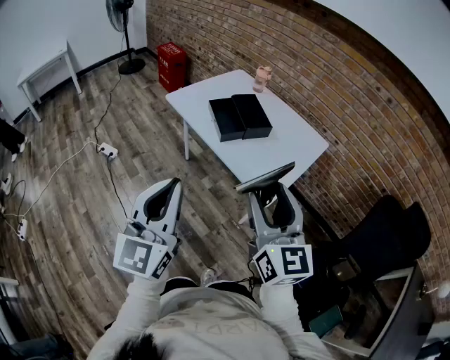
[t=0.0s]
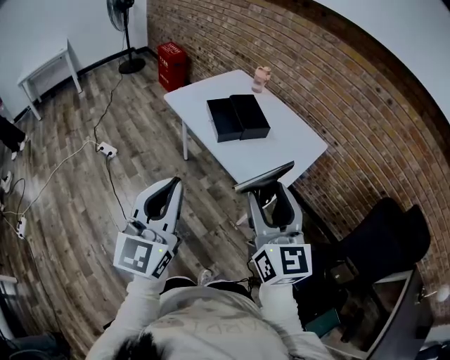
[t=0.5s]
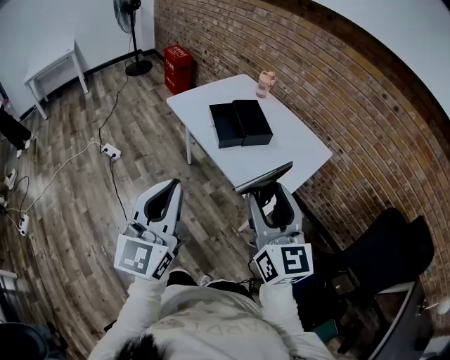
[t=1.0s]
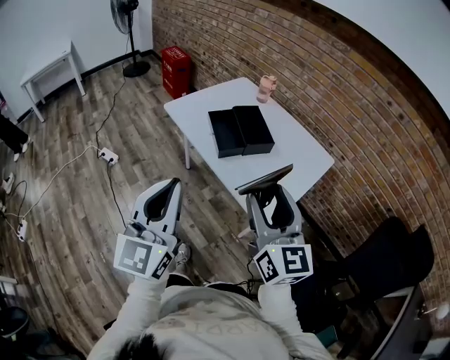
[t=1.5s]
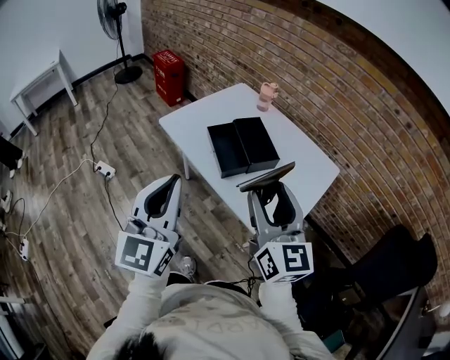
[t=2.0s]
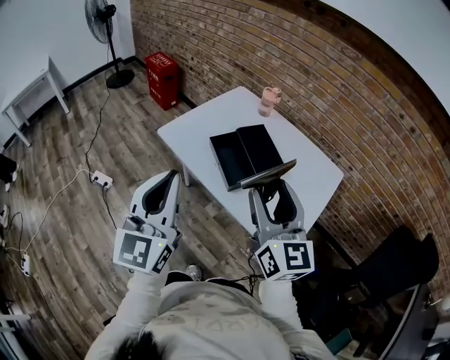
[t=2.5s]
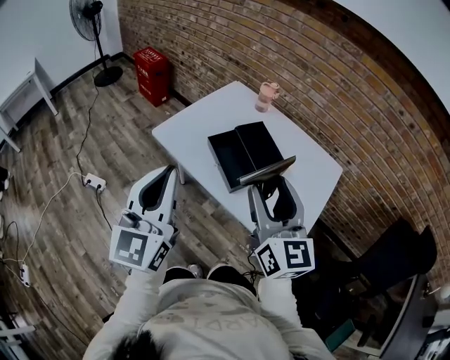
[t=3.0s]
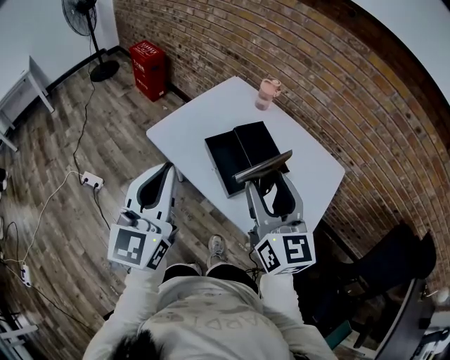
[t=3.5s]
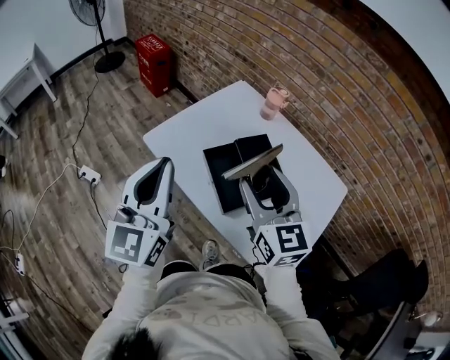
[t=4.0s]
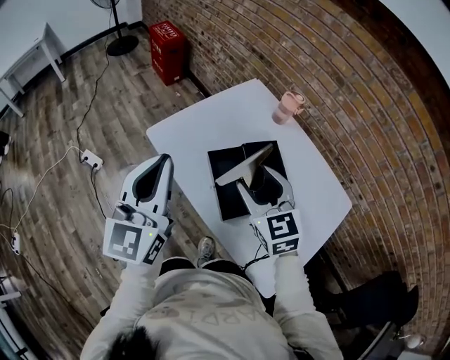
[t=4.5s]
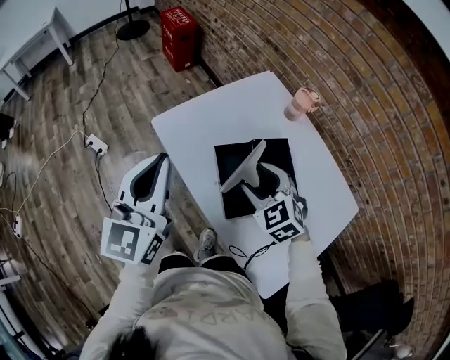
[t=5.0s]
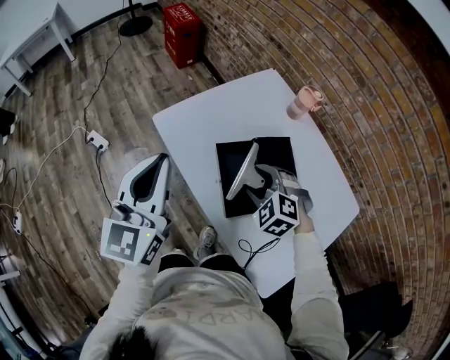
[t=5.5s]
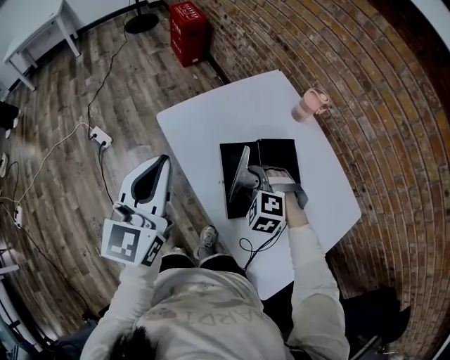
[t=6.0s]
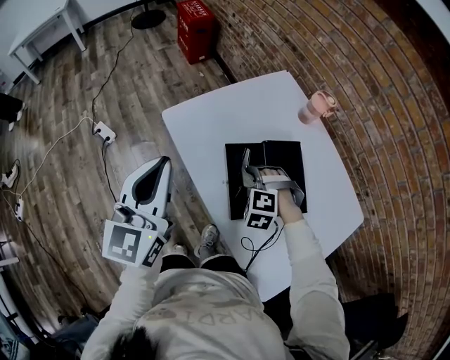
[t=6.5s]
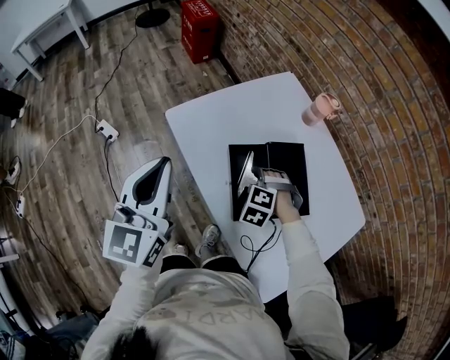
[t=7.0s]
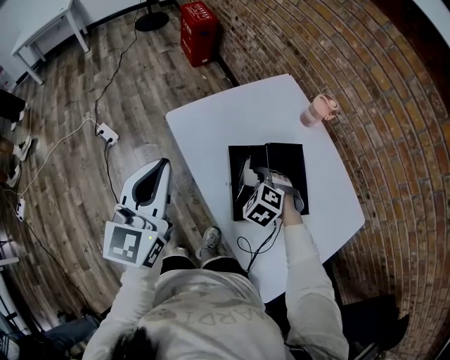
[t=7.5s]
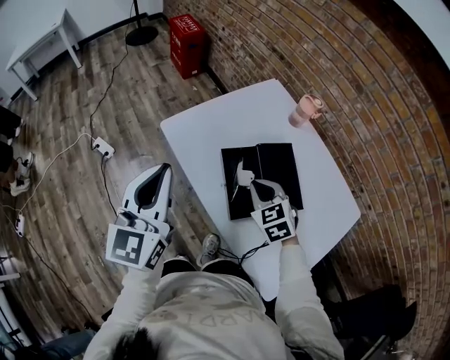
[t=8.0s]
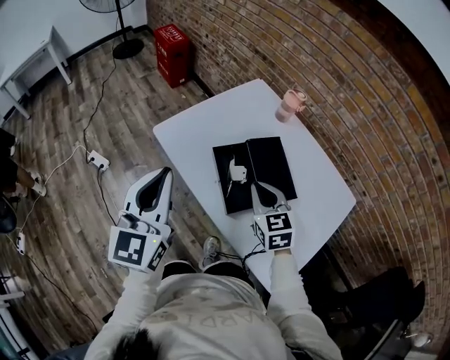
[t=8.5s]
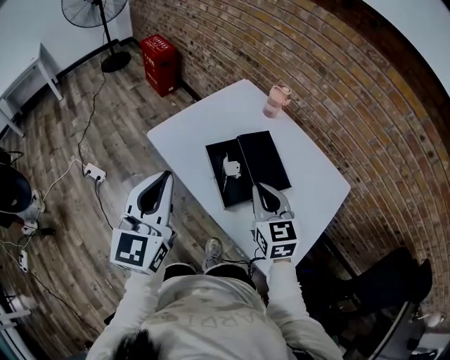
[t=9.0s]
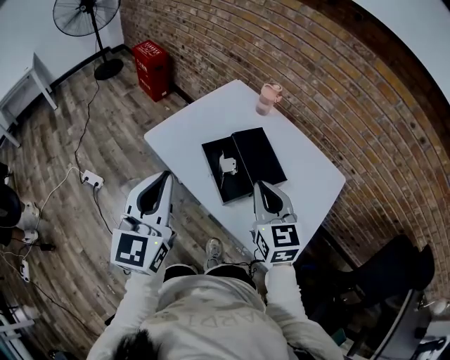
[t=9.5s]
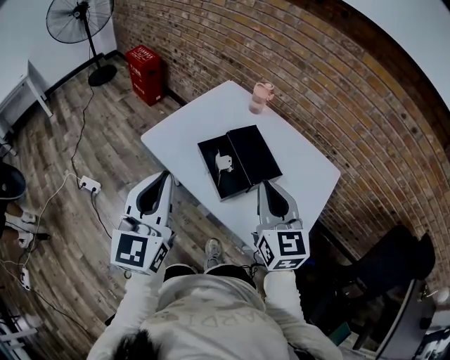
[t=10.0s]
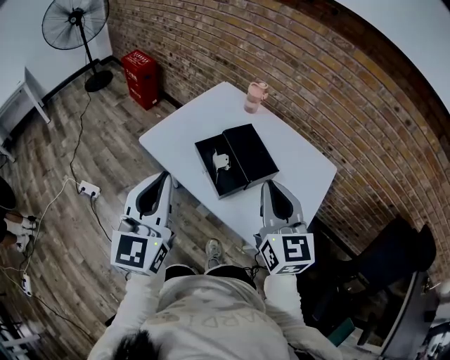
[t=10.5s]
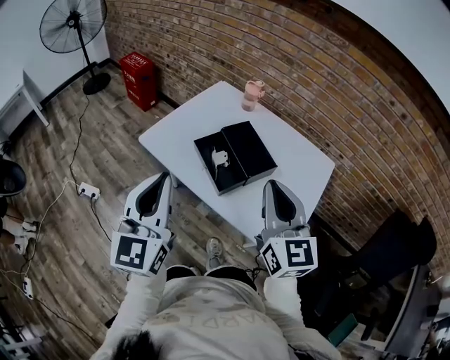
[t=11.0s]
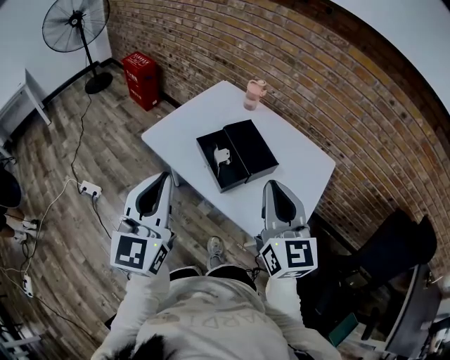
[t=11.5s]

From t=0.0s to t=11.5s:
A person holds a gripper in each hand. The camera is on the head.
From t=0.0s to t=2.0s: Both grippers move forward, roughly 20 cm.
From t=2.0s to t=4.0s: The two grippers go approximately 25 cm forward.
From t=4.0s to t=6.0s: The left gripper heads downward and forward, covering about 10 cm. Meanwhile the right gripper shifts roughly 25 cm downward, and tips its fingers downward by some 50 degrees.
From t=6.0s to t=7.5s: The grippers make only small movements.
From t=7.5s to t=9.5s: The right gripper travels upward and backward by about 25 cm, points its fingers about 50 degrees further upward, and closes. The left gripper goes roughly 10 cm backward.
From t=9.5s to t=11.5s: The right gripper is displaced backward and upward by roughly 15 cm. The left gripper travels backward by some 10 cm.

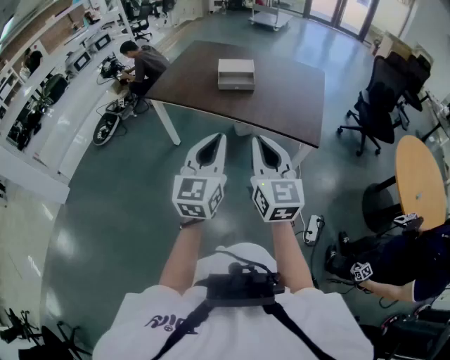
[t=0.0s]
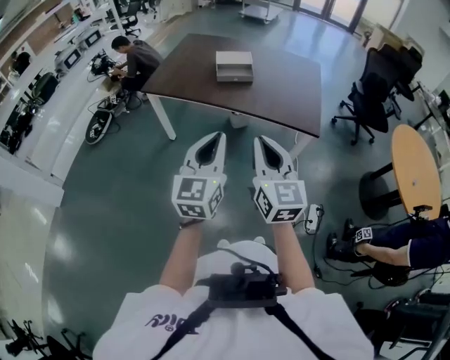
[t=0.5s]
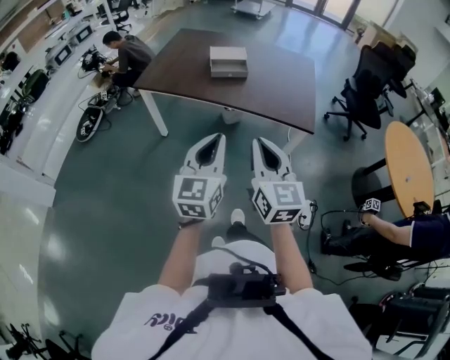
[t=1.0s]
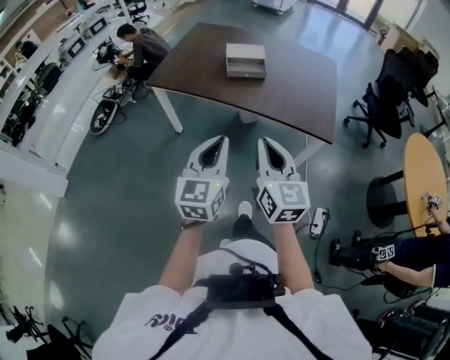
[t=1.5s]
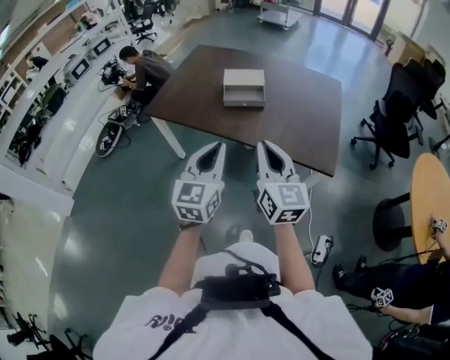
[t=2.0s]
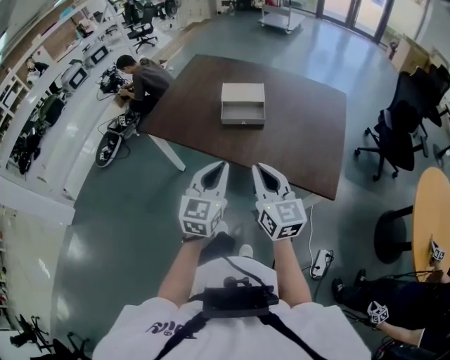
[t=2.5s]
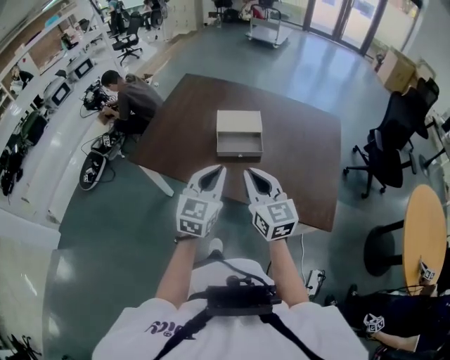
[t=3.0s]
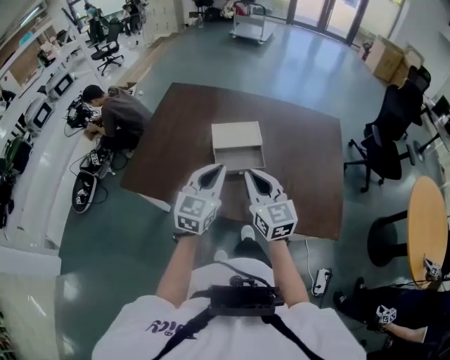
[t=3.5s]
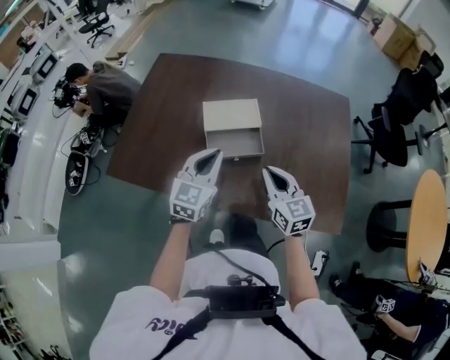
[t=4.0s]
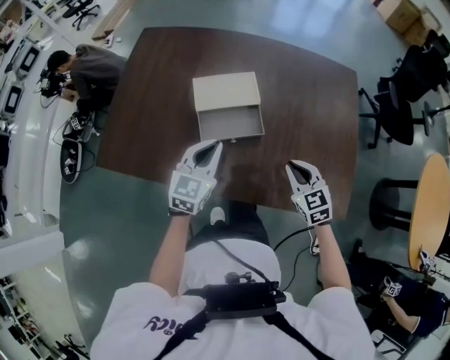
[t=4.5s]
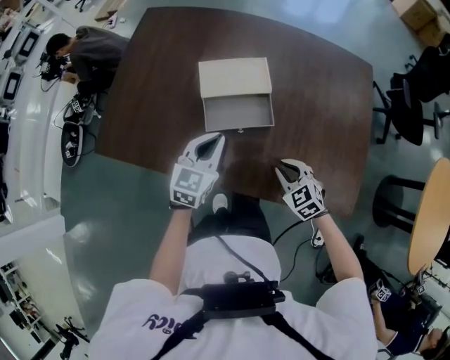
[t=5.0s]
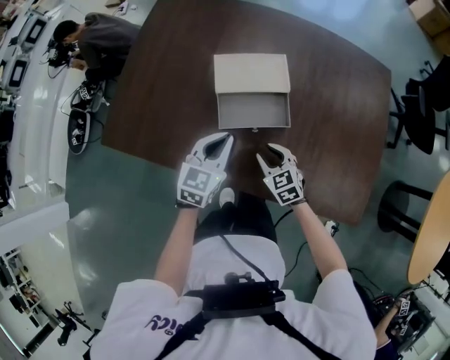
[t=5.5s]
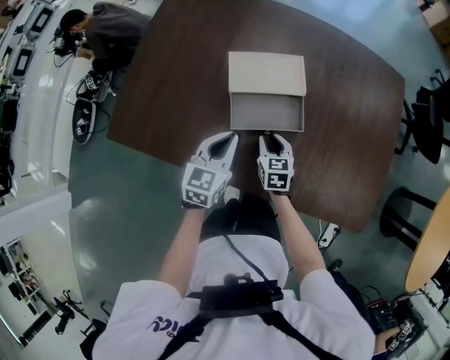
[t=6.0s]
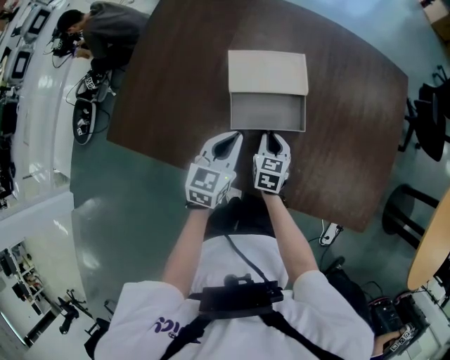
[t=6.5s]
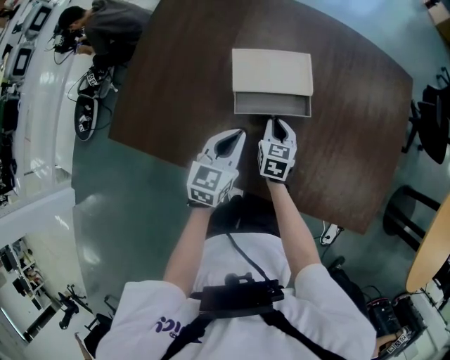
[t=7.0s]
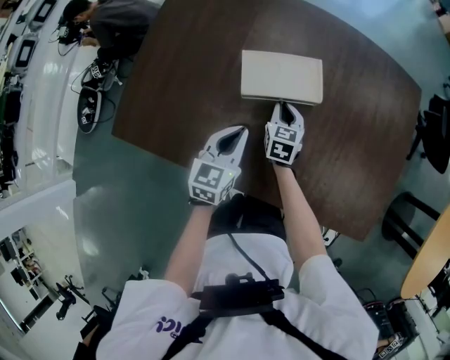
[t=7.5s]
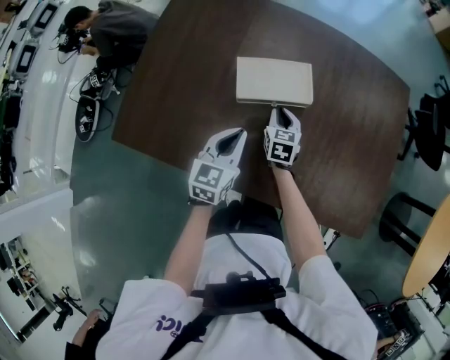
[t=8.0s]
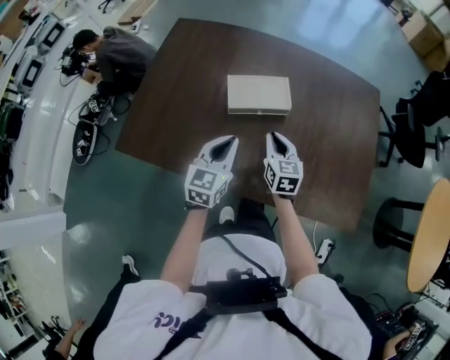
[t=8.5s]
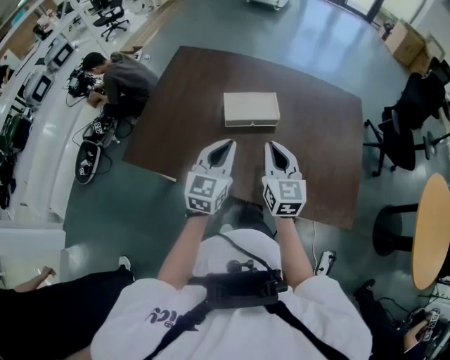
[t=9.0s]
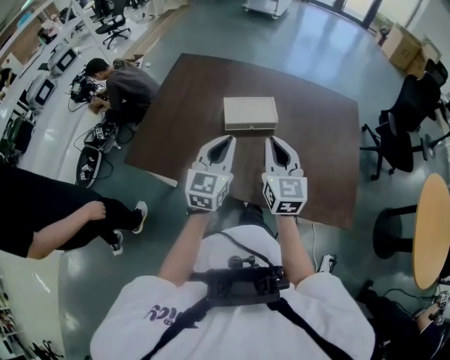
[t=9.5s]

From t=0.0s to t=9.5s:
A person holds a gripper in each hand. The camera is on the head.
From t=0.0s to t=2.0s: Both grippers travel together forward, approximately 20 cm.
From t=2.0s to t=4.0s: The pair of grippers is taken forward, approximately 40 cm. The right gripper is displaced downward by approximately 20 cm.
From t=4.0s to t=5.5s: The left gripper heads downward, covering about 15 cm. Meanwhile the right gripper goes some 25 cm downward, swivels some 30 degrees, and opens.
From t=5.5s to t=7.5s: The left gripper changes place by approximately 5 cm, while the right gripper moves forward, about 20 cm, and turns by roughly 30 degrees.
From t=7.5s to t=9.5s: The left gripper shifts about 25 cm upward and backward, and swivels approximately 20 degrees; the right gripper travels upward and backward by some 40 cm, and angles its fingers upward, by some 30 degrees.

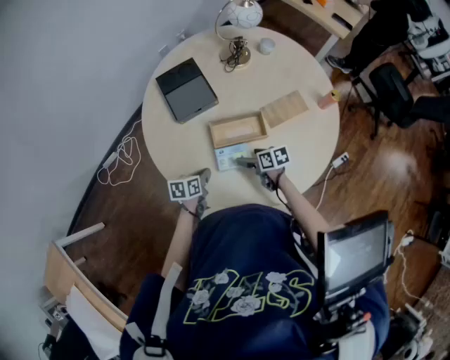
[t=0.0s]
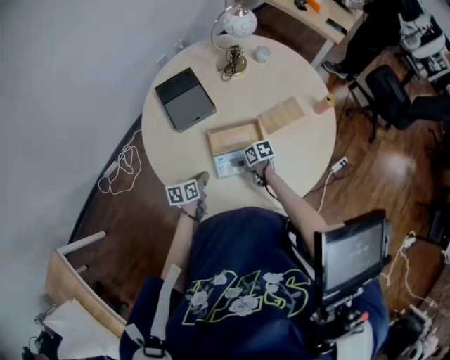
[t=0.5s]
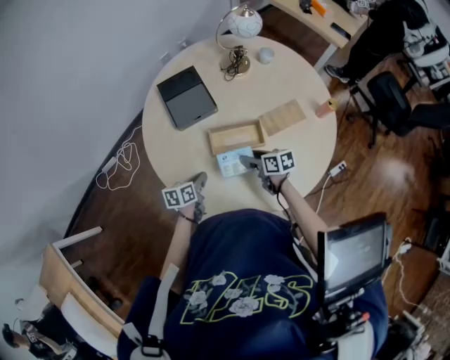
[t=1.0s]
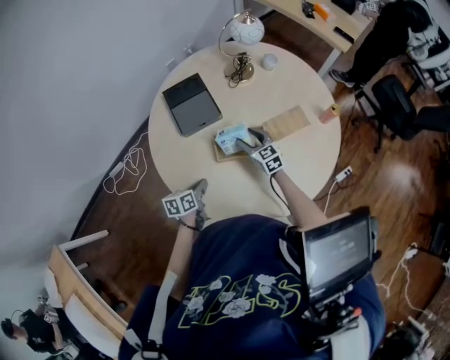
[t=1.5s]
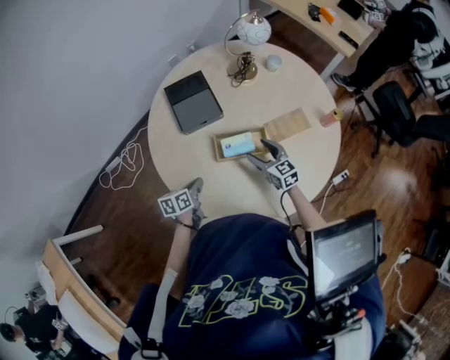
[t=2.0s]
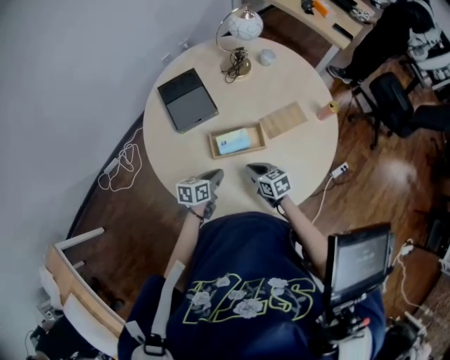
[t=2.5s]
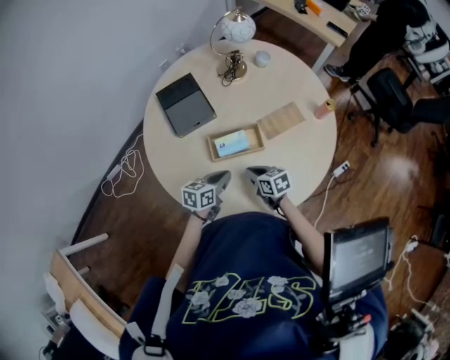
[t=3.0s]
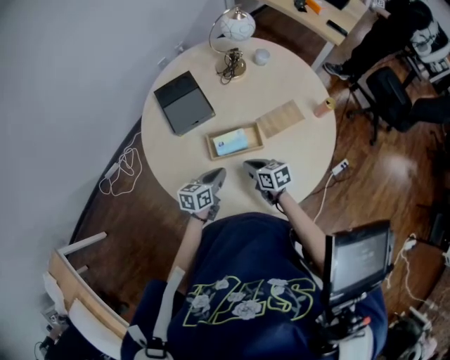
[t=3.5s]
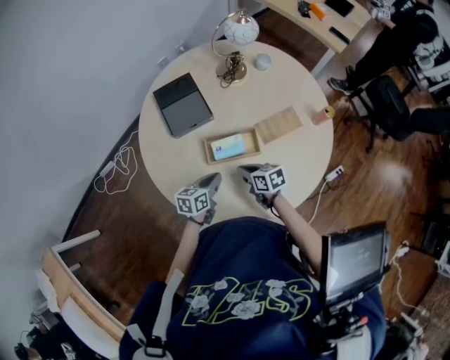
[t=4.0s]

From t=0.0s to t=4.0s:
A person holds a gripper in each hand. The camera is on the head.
From t=0.0s to t=2.0s: The left gripper ends up roughly 5 cm from where it was. The right gripper moves upward and forward, about 10 cm, and swivels roughly 40 degrees.
From t=2.0s to t=4.0s: The left gripper shifts about 10 cm to the right; the right gripper moves backward, roughly 5 cm, swivels roughly 30 degrees, and closes.

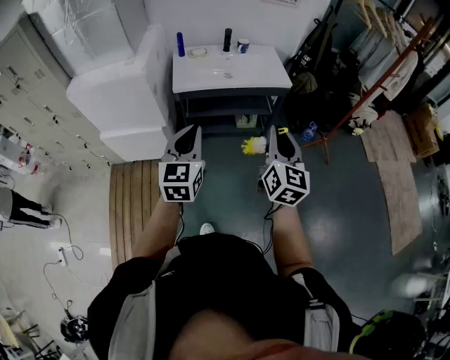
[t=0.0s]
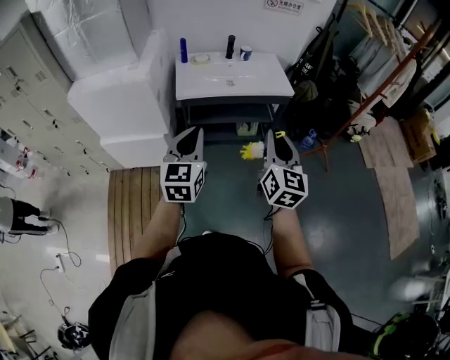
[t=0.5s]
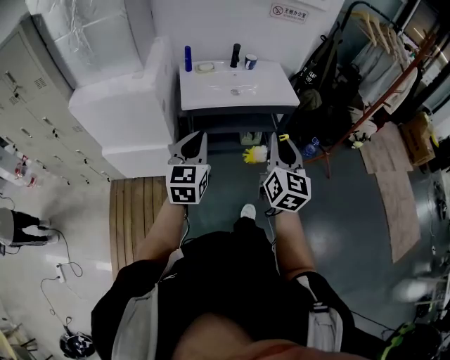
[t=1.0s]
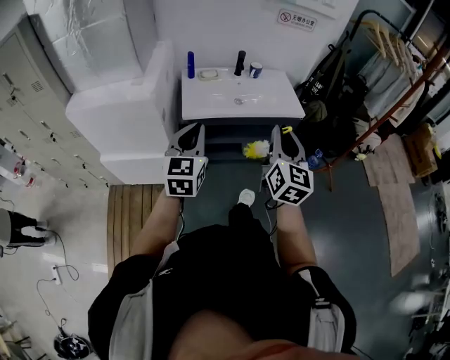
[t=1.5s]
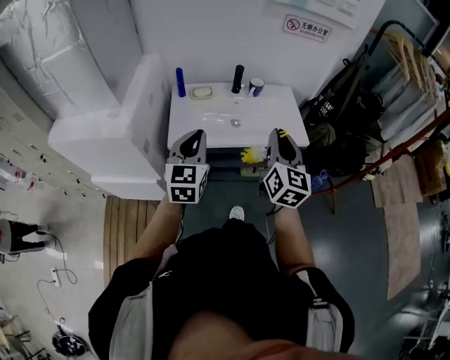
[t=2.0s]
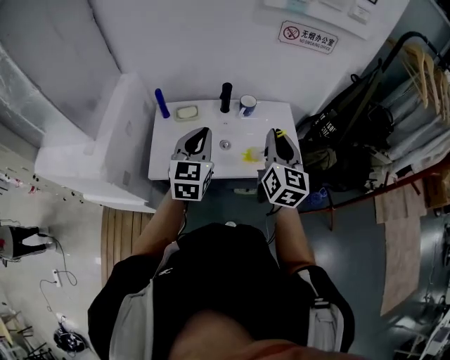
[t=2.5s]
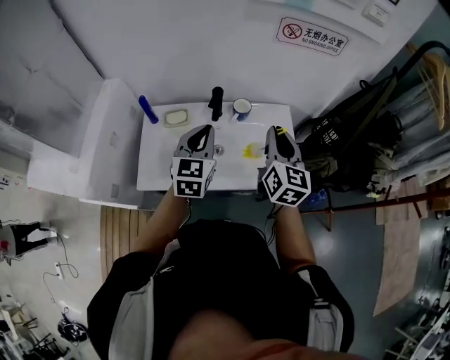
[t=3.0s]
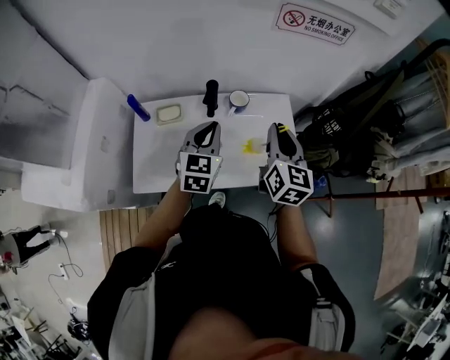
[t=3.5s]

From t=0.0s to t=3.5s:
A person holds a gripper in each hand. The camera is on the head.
From t=0.0s to t=2.0s: Both grippers move forward, about 35 cm.
From t=2.0s to t=3.5s: The right gripper shifts roughly 30 cm forward, while the left gripper travels forward and to the right by about 35 cm.
